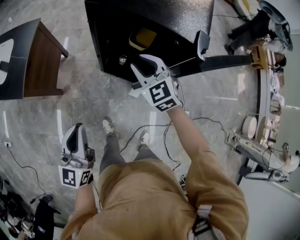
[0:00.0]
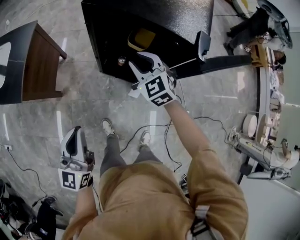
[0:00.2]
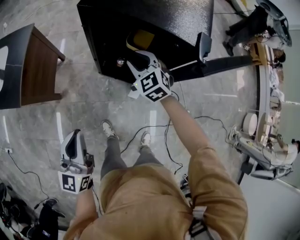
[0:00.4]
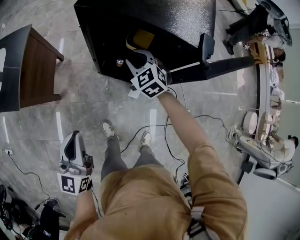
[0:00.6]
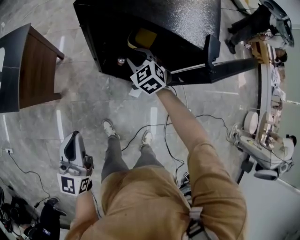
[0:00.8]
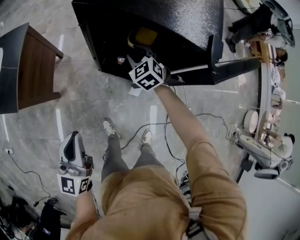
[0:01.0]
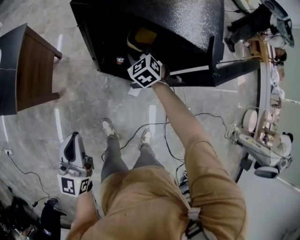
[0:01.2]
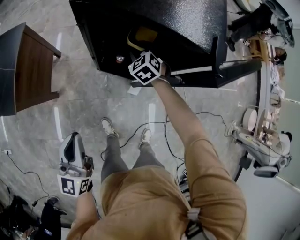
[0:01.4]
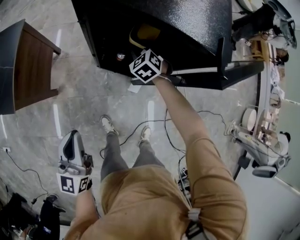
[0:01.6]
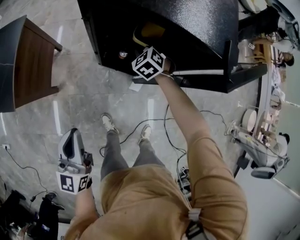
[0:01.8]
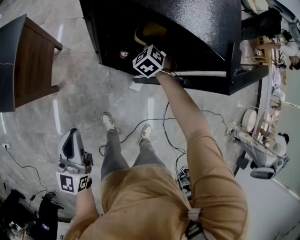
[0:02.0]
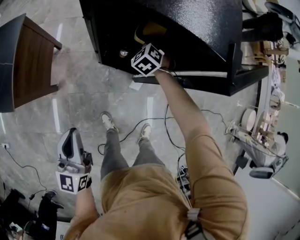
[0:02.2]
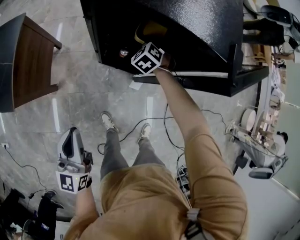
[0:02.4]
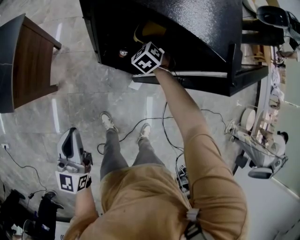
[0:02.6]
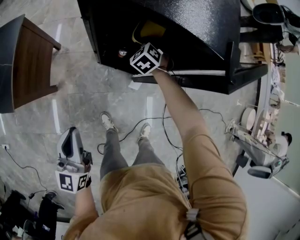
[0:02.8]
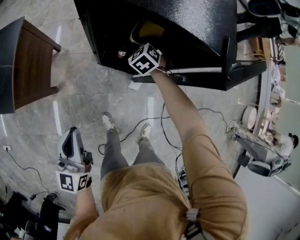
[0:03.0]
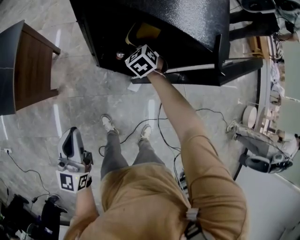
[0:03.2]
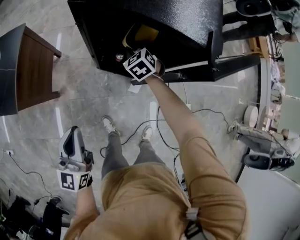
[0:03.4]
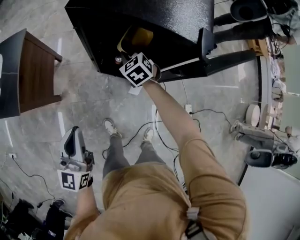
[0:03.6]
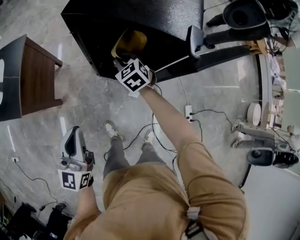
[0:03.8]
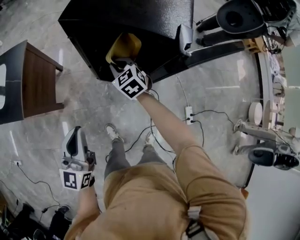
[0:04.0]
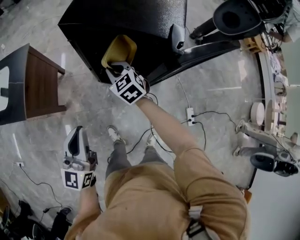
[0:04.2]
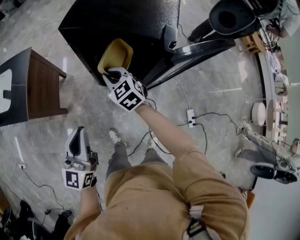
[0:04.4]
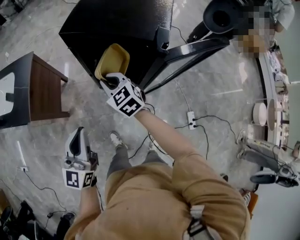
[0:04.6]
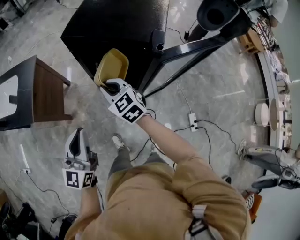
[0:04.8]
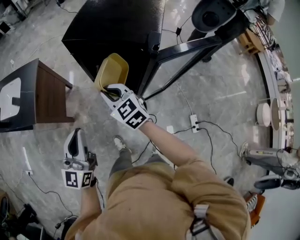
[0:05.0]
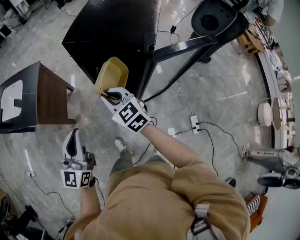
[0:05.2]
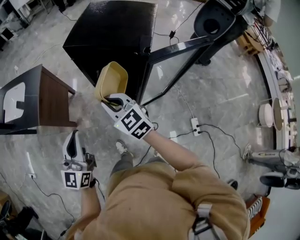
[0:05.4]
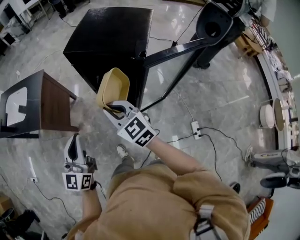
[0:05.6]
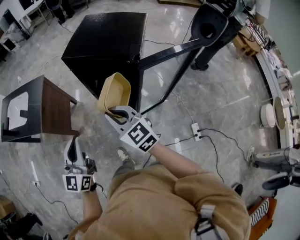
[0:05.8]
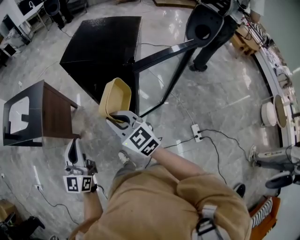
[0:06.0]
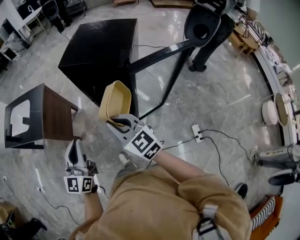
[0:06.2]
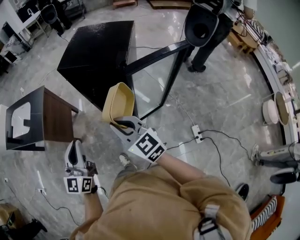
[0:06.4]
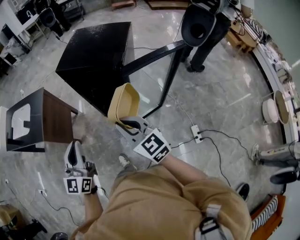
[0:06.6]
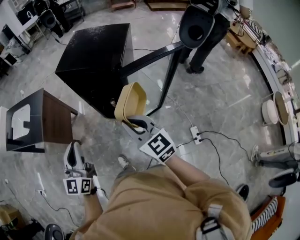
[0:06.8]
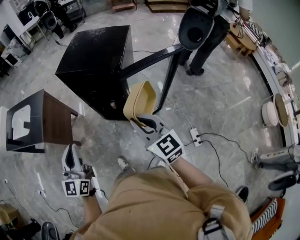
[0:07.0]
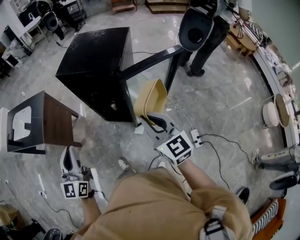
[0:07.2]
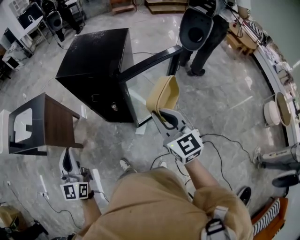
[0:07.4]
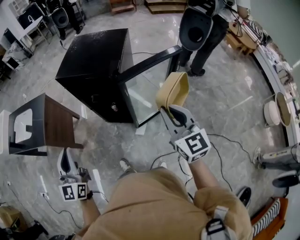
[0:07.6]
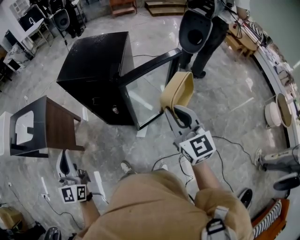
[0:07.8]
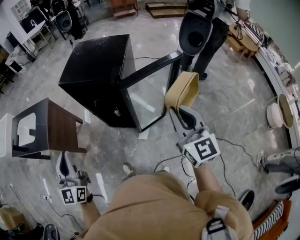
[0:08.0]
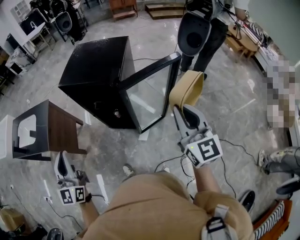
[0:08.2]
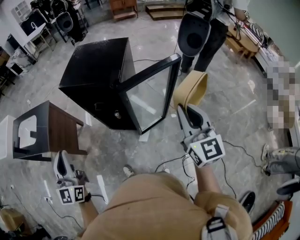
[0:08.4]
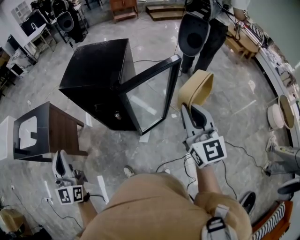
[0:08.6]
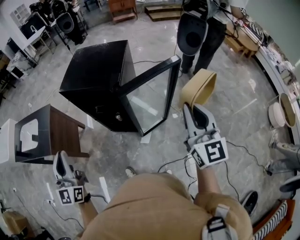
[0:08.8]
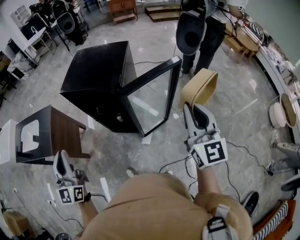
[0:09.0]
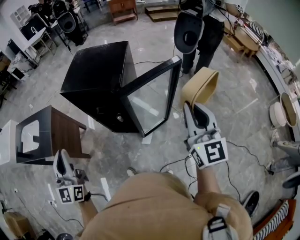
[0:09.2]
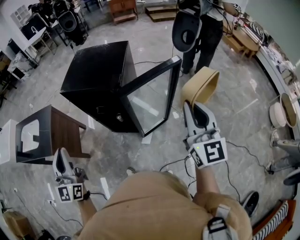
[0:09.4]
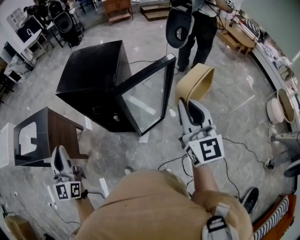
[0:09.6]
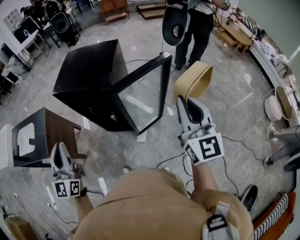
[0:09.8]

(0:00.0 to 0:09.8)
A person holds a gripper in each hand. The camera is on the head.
0:00.0 - 0:01.4: The right gripper travels downward and forward by some 20 cm, and swivels roughly 20 degrees; the left gripper is displaced downward by approximately 5 cm.
0:01.4 - 0:02.8: The right gripper moves downward, approximately 5 cm, and closes up.
0:02.8 - 0:04.2: The left gripper goes some 15 cm upward, to the right and backward. The right gripper shifts approximately 20 cm upward and backward, and changes its angle by about 30 degrees.
0:04.2 - 0:05.6: The left gripper goes approximately 10 cm upward and backward. Meanwhile the right gripper moves backward and upward, some 30 cm, and changes its angle by roughly 20 degrees.
0:05.6 - 0:07.0: The right gripper moves to the right and backward, some 20 cm; the left gripper shifts about 10 cm to the right and backward.
0:07.0 - 0:08.4: The right gripper moves to the right and upward, about 20 cm, and rotates approximately 30 degrees. The left gripper heads upward, covering about 5 cm.
0:08.4 - 0:09.8: The left gripper shifts by approximately 5 cm.

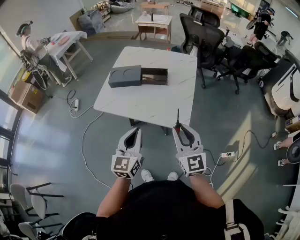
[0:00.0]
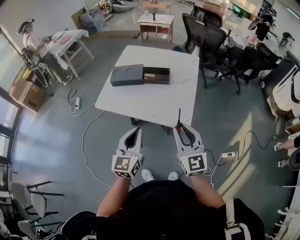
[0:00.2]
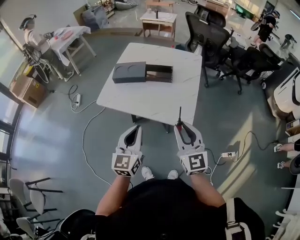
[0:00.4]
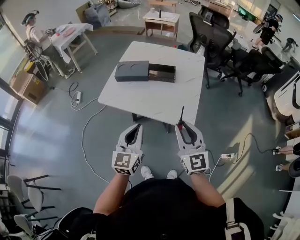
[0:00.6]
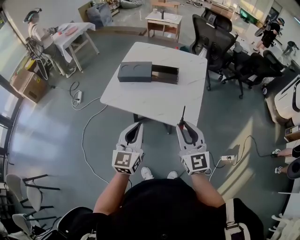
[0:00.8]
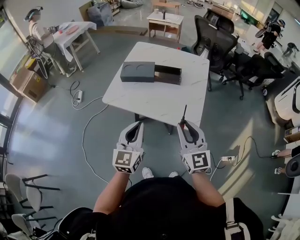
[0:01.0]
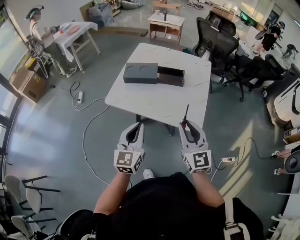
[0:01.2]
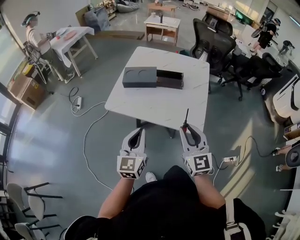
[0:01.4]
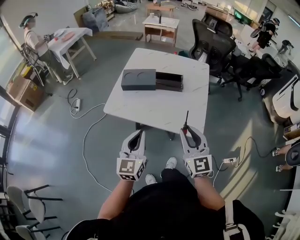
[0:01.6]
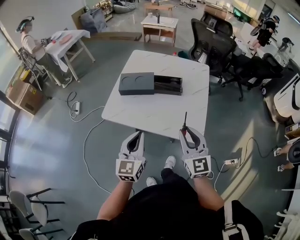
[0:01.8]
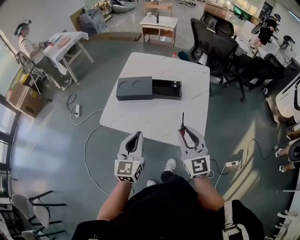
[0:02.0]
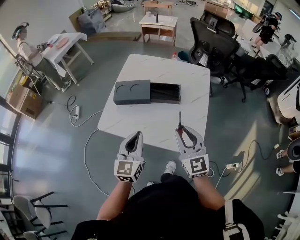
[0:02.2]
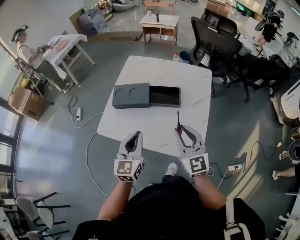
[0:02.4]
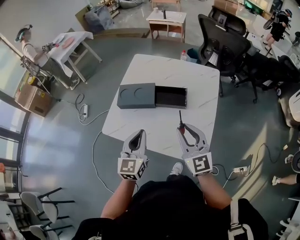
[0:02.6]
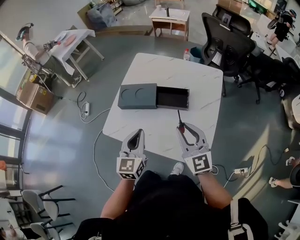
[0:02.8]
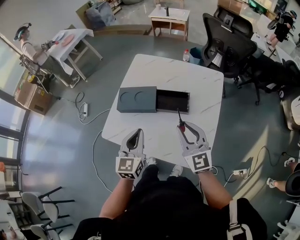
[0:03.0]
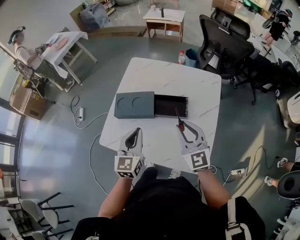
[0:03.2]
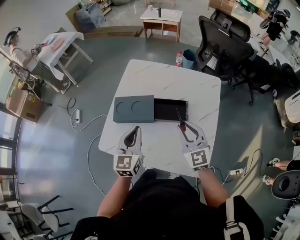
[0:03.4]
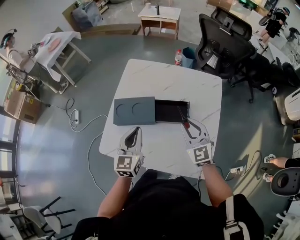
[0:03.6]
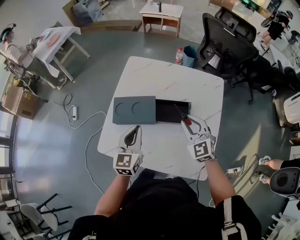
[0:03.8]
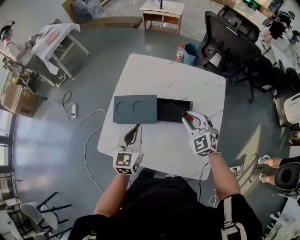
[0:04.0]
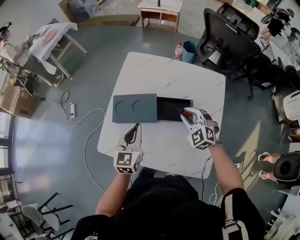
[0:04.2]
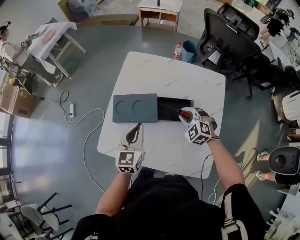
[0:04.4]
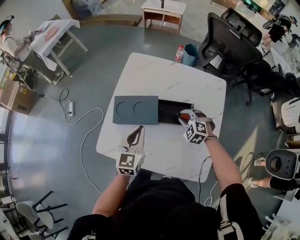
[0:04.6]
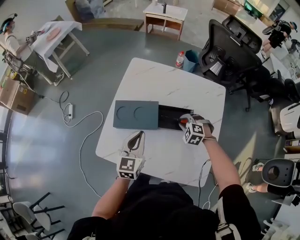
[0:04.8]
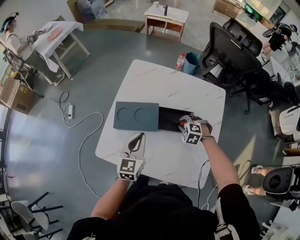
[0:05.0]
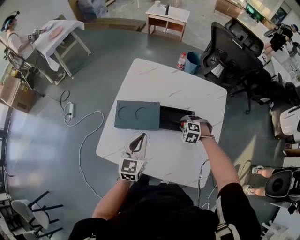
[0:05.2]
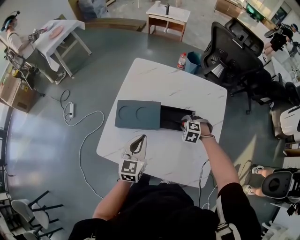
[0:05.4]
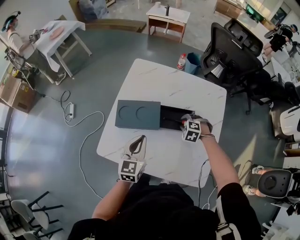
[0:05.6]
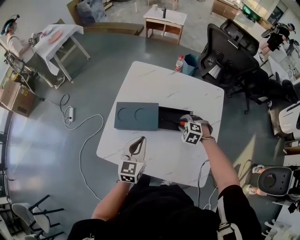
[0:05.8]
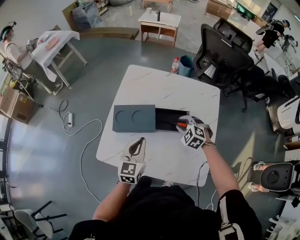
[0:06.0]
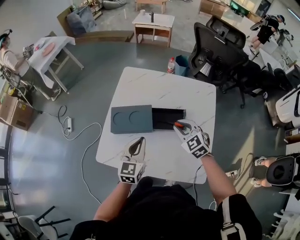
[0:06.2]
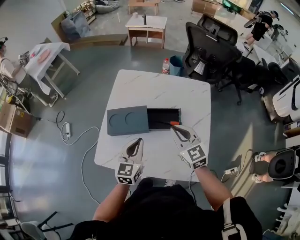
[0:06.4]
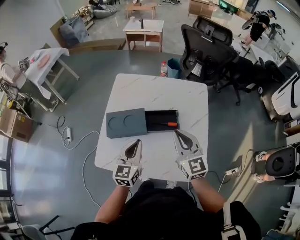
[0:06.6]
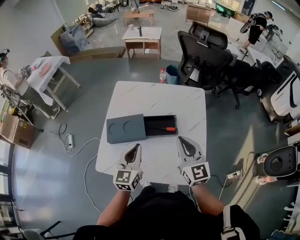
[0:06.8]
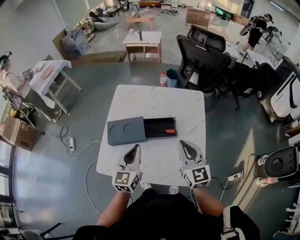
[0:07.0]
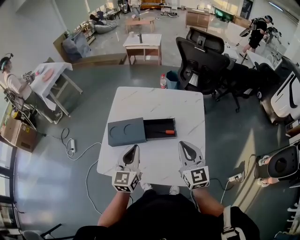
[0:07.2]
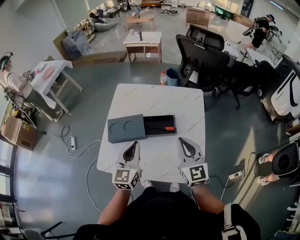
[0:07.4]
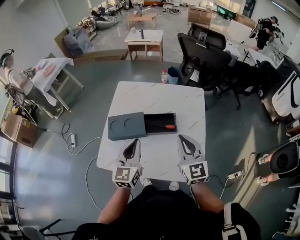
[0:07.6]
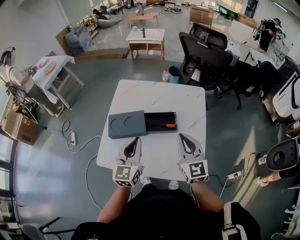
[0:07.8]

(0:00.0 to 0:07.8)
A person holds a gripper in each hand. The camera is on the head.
0:00.0 - 0:01.6: The two grippers go some 10 cm to the left.
0:01.6 - 0:03.2: Both grippers travel together forward, roughly 25 cm.
0:03.2 - 0:04.6: The right gripper goes approximately 25 cm downward and forward, and angles its fingers downward, by about 50 degrees, while the left gripper moves forward and downward, approximately 10 cm.
0:04.6 - 0:06.2: The right gripper travels upward by about 10 cm, and rotates approximately 30 degrees.
0:06.2 - 0:07.8: The left gripper moves upward, approximately 10 cm; the right gripper moves upward, backward and to the right, approximately 15 cm, and points its fingers some 30 degrees further upward.

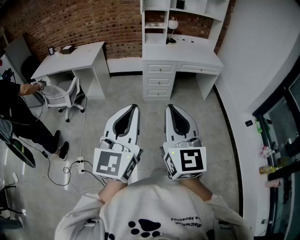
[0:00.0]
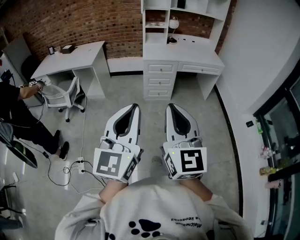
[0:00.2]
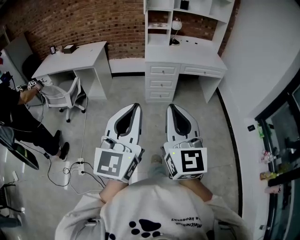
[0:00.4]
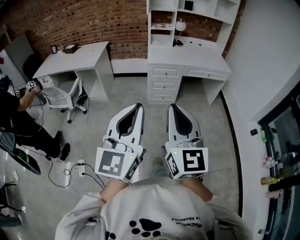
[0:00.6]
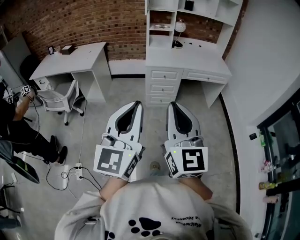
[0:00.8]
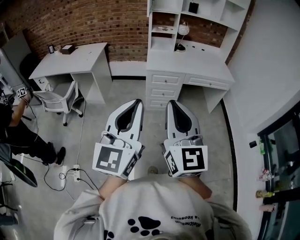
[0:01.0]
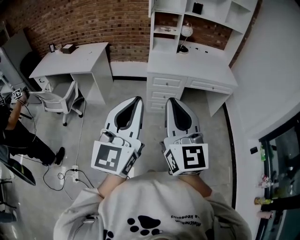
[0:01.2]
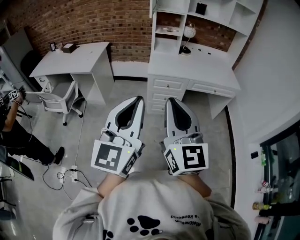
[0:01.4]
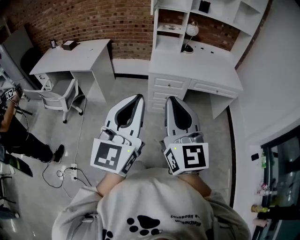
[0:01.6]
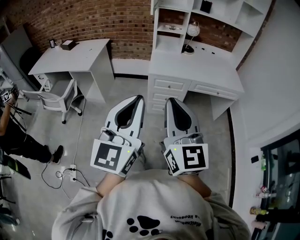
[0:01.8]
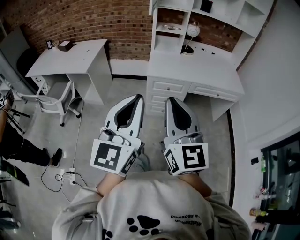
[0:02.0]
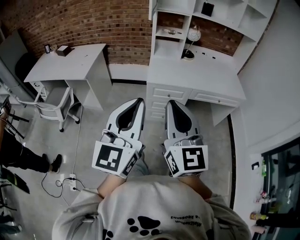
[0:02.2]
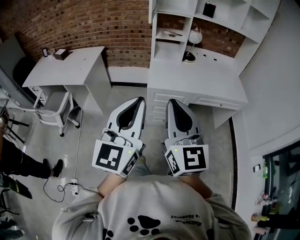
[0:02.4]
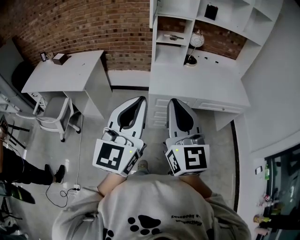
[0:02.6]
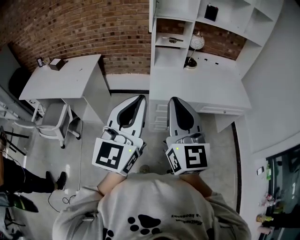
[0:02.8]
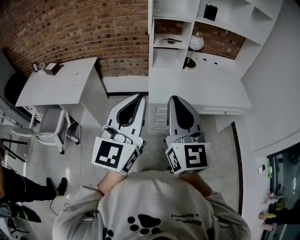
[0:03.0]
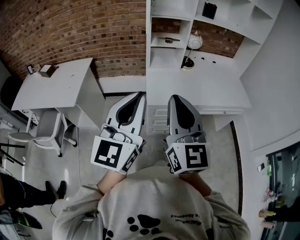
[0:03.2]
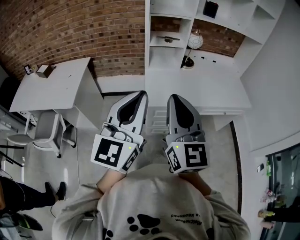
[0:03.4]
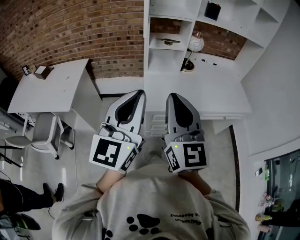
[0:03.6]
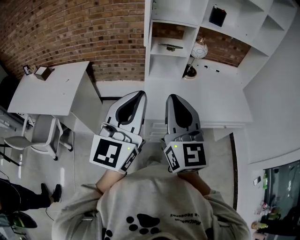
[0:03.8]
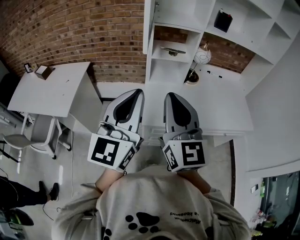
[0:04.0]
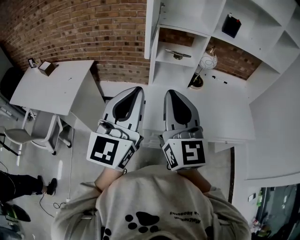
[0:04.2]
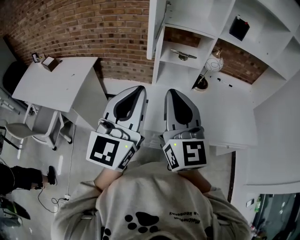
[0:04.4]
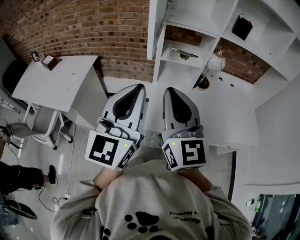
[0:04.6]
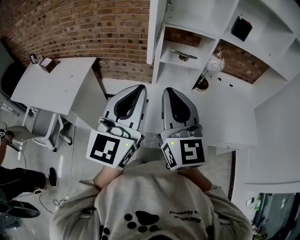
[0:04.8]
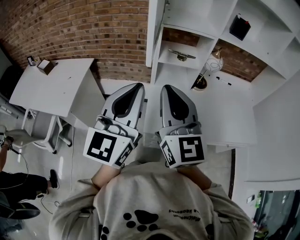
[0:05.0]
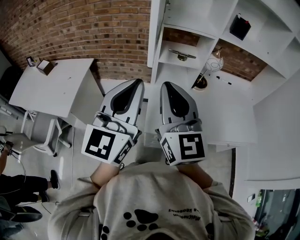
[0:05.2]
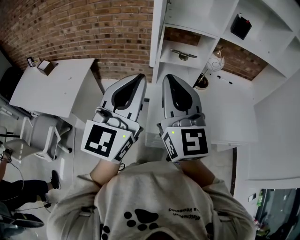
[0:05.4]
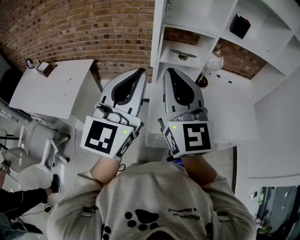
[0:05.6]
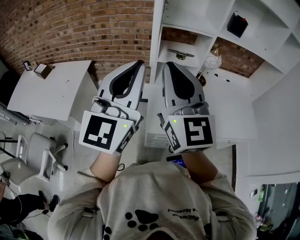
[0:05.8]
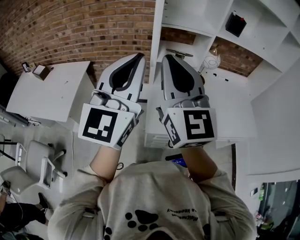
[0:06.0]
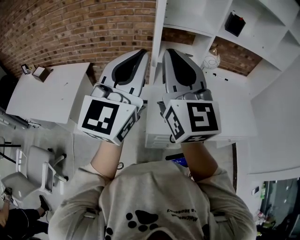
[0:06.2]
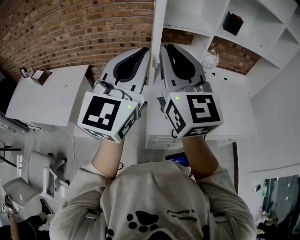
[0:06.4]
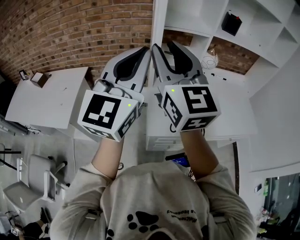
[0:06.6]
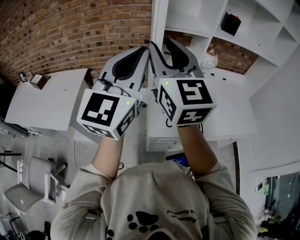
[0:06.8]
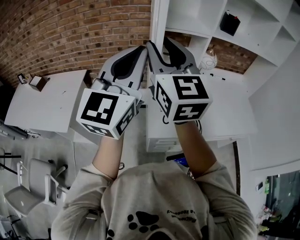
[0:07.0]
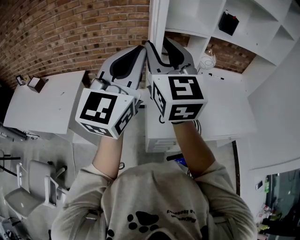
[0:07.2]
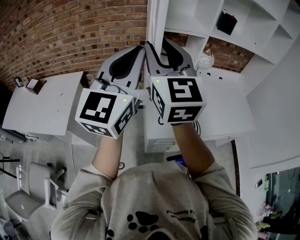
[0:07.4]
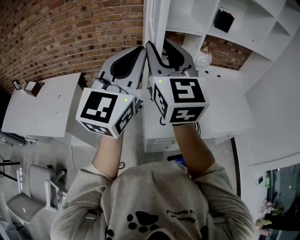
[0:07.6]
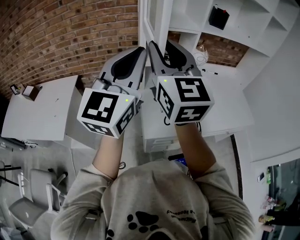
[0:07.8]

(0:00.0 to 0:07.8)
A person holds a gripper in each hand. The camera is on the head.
0:00.0 - 0:01.6: The grippers both shift forward by about 35 cm.
0:01.6 - 0:03.2: Both grippers travel together forward, roughly 35 cm.
0:03.2 - 0:04.6: Both grippers move forward, some 25 cm.
0:04.6 - 0:06.2: The grippers both shift upward and forward by some 10 cm.
0:06.2 - 0:07.8: The right gripper heads forward, covering roughly 5 cm, and opens up.
